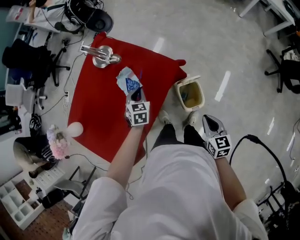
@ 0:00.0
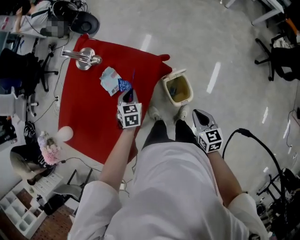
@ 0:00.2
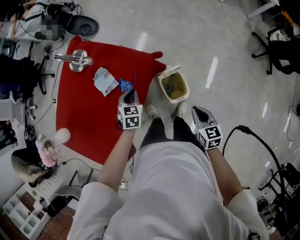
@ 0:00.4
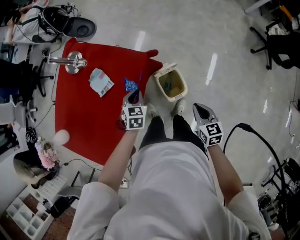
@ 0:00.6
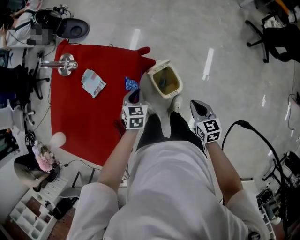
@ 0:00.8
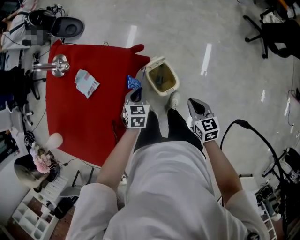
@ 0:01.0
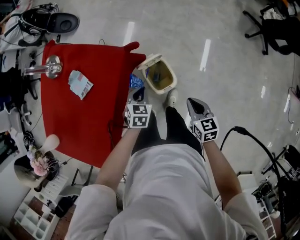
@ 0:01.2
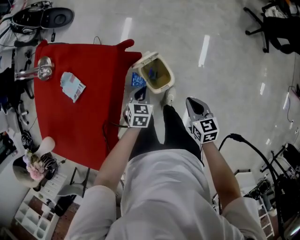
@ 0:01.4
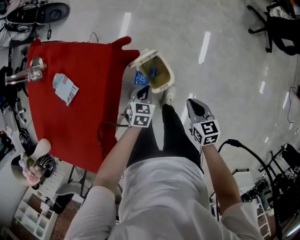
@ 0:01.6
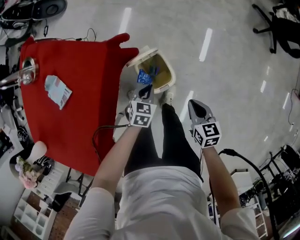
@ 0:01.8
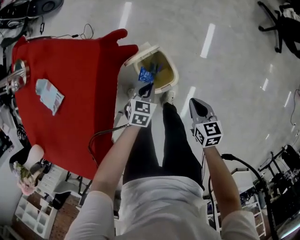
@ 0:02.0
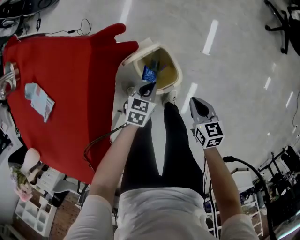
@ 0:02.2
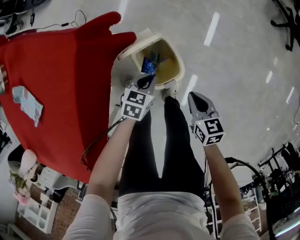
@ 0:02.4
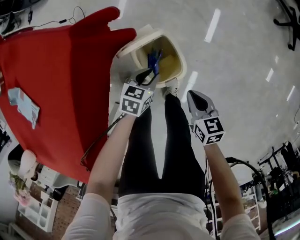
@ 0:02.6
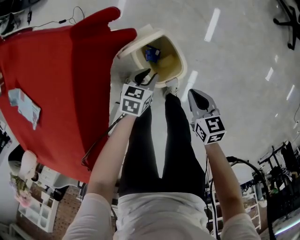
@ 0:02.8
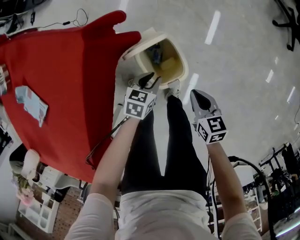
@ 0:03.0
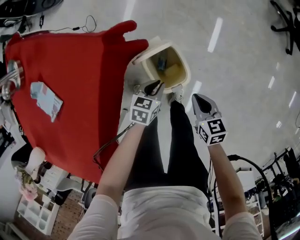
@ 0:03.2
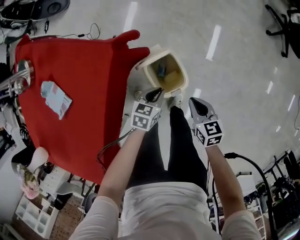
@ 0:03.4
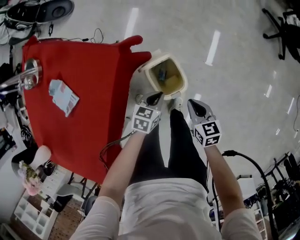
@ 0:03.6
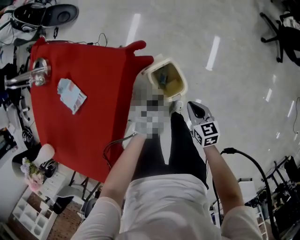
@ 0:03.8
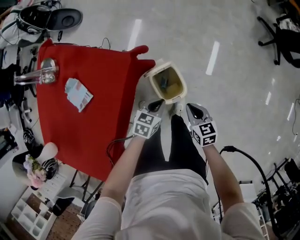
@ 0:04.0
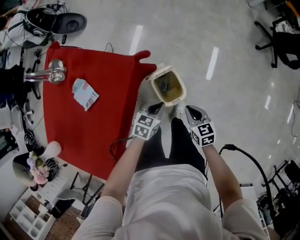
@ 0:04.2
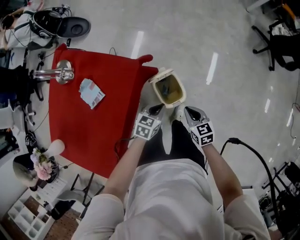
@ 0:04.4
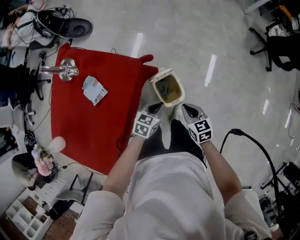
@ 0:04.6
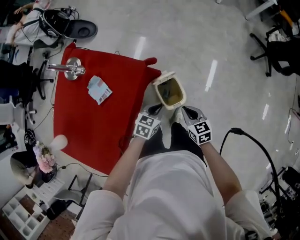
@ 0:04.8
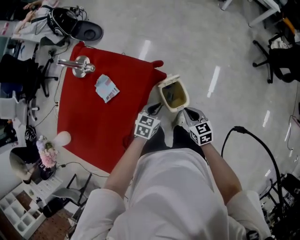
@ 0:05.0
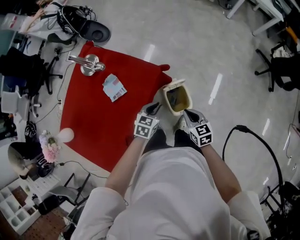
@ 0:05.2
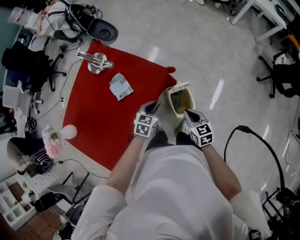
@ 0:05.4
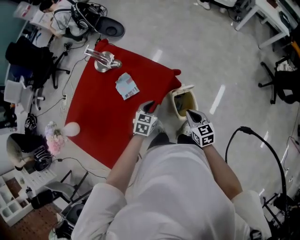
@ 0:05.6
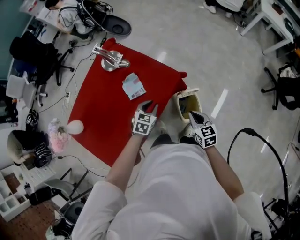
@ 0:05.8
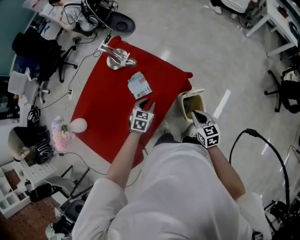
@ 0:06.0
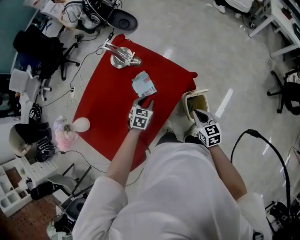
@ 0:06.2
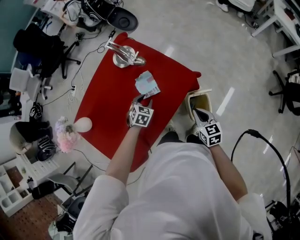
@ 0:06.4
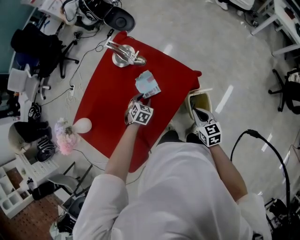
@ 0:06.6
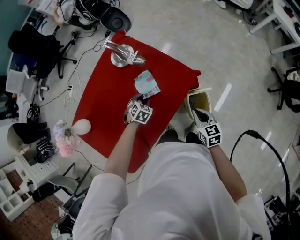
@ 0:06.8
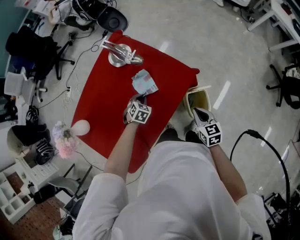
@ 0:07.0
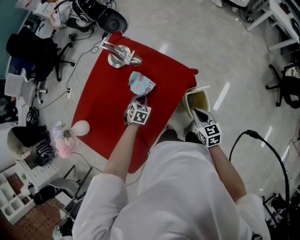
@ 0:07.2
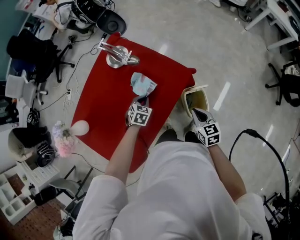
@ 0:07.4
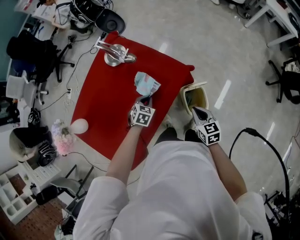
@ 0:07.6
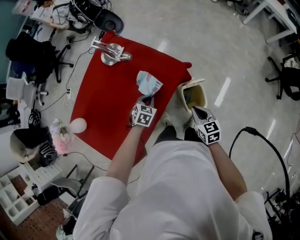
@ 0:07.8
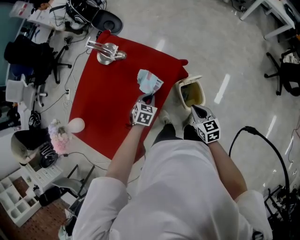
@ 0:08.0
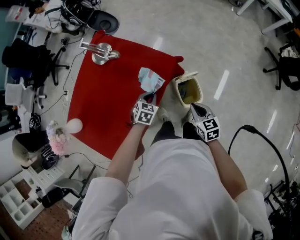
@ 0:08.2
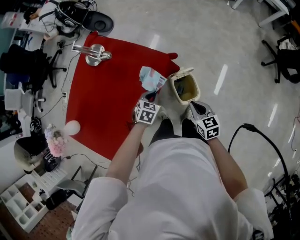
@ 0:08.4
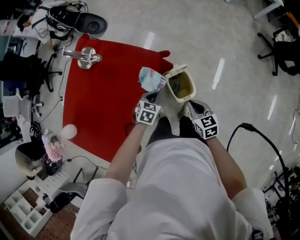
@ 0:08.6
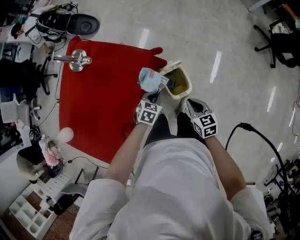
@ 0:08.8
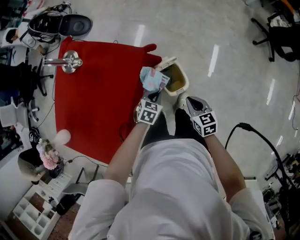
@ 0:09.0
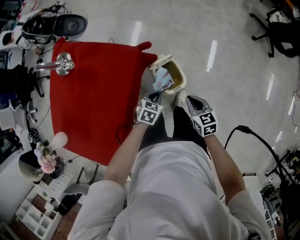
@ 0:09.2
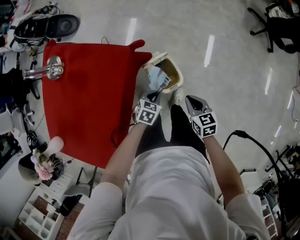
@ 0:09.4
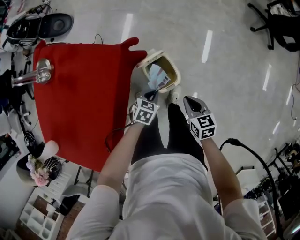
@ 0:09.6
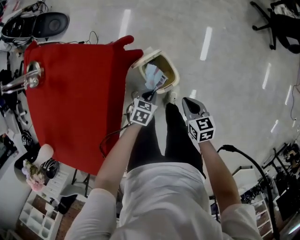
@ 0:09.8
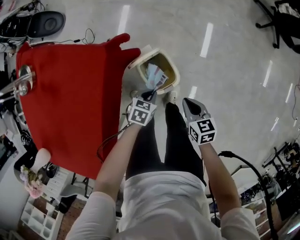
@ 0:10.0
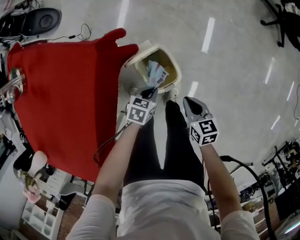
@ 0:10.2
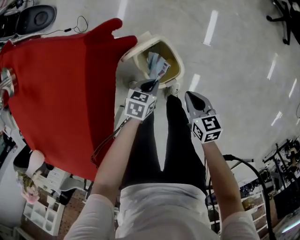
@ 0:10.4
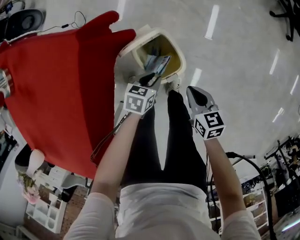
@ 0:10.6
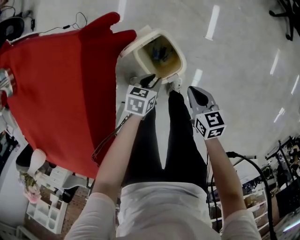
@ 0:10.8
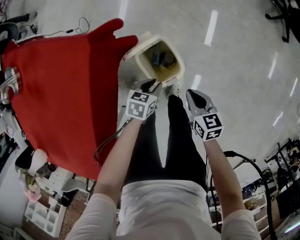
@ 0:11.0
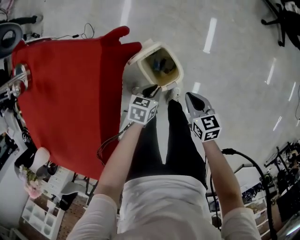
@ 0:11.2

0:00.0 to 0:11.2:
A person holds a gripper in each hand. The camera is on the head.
0:00.0 to 0:01.6: The left gripper heads to the right and downward, covering approximately 35 cm, and changes its angle by some 30 degrees, while the right gripper travels to the right and downward by approximately 20 cm.
0:01.6 to 0:03.2: The grippers both shift downward by roughly 15 cm.
0:03.2 to 0:04.8: The grippers both shift upward by roughly 25 cm.
0:04.8 to 0:06.4: The left gripper travels to the left by approximately 30 cm, rotates about 30 degrees, and opens up; the right gripper travels to the left by some 15 cm.
0:06.4 to 0:08.0: The left gripper goes approximately 10 cm to the right, and closes up. The right gripper heads backward and to the right, covering roughly 10 cm.
0:08.0 to 0:09.6: The right gripper changes place by about 20 cm, and rotates approximately 20 degrees. The left gripper ends up approximately 30 cm from where it was, and swivels approximately 20 degrees.
0:09.6 to 0:11.2: The two grippers go about 10 cm downward.

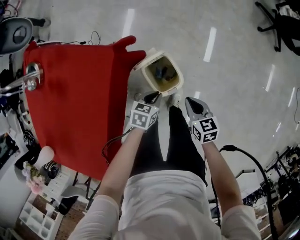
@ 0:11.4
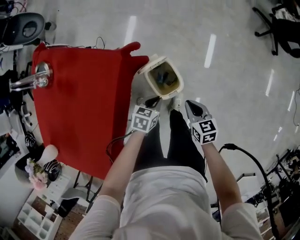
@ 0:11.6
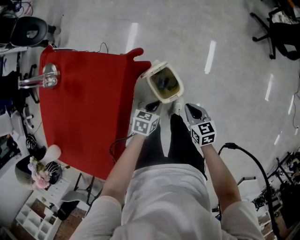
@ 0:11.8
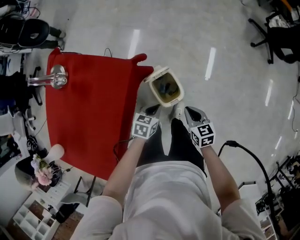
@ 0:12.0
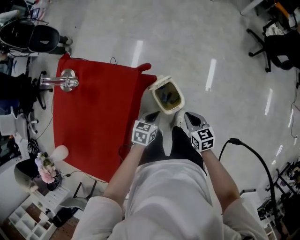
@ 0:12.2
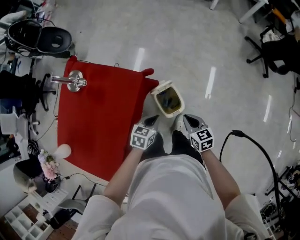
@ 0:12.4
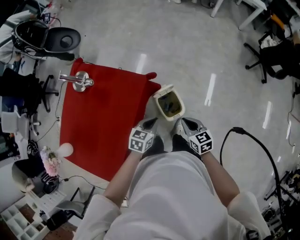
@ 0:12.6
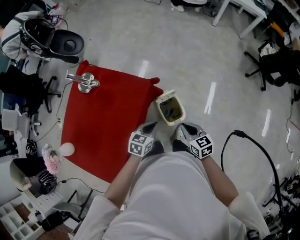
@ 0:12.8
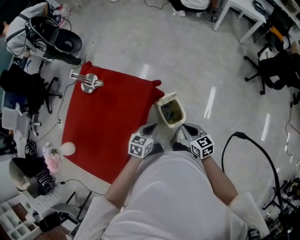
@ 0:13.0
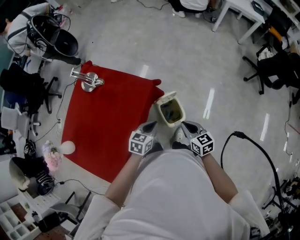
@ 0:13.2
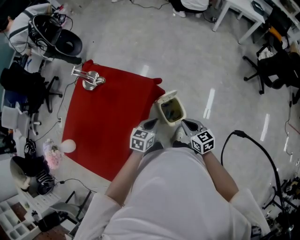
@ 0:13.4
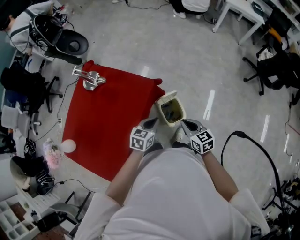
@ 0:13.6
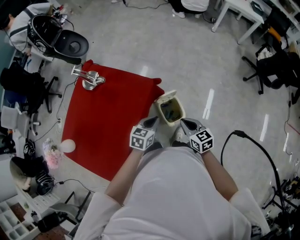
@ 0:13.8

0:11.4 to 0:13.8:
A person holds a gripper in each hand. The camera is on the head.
0:11.4 to 0:12.6: Both grippers move upward, approximately 25 cm.
0:12.6 to 0:13.8: Both grippers travel together upward, some 5 cm.

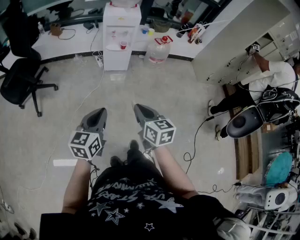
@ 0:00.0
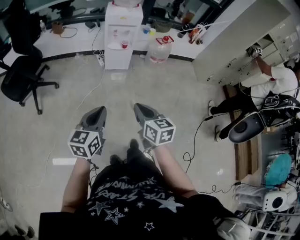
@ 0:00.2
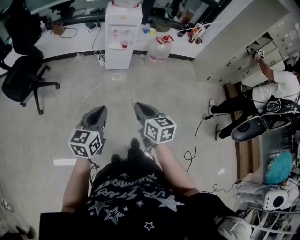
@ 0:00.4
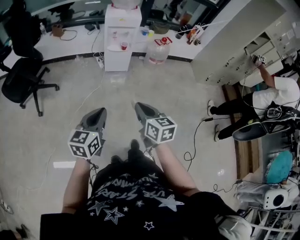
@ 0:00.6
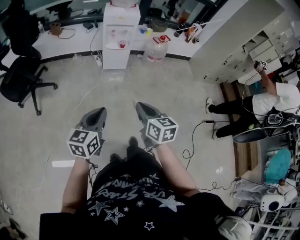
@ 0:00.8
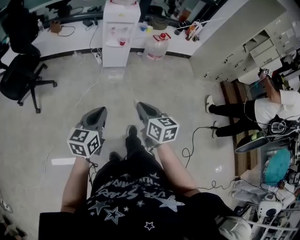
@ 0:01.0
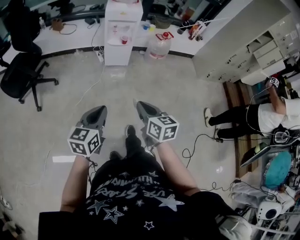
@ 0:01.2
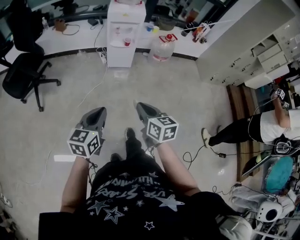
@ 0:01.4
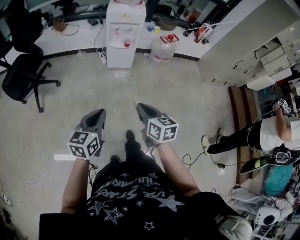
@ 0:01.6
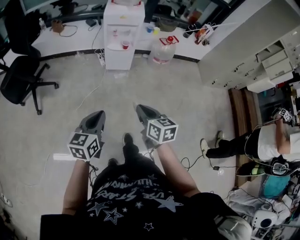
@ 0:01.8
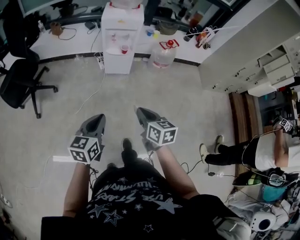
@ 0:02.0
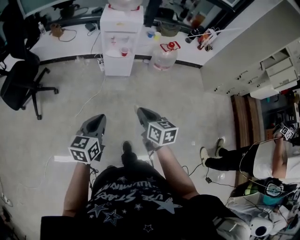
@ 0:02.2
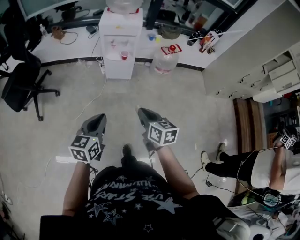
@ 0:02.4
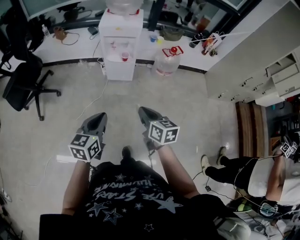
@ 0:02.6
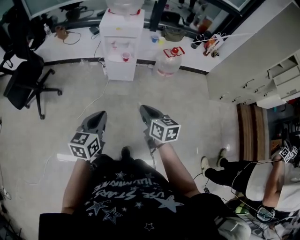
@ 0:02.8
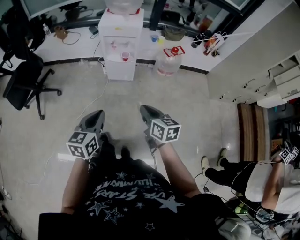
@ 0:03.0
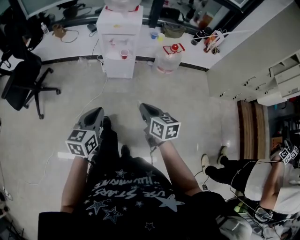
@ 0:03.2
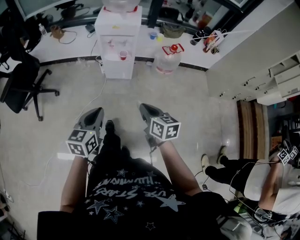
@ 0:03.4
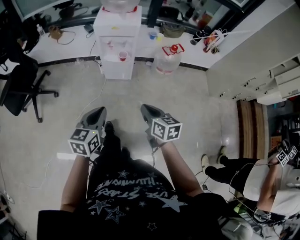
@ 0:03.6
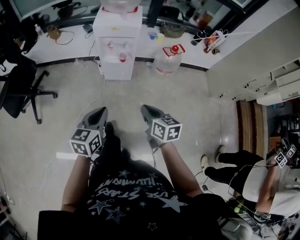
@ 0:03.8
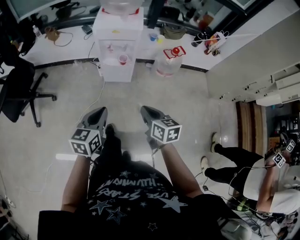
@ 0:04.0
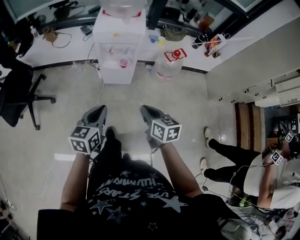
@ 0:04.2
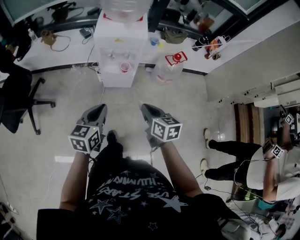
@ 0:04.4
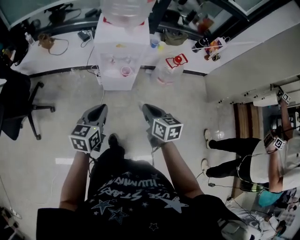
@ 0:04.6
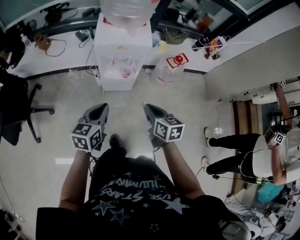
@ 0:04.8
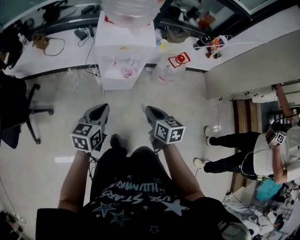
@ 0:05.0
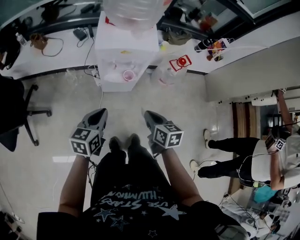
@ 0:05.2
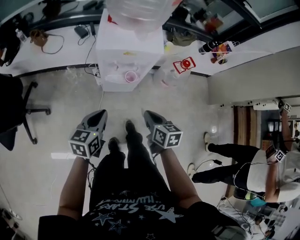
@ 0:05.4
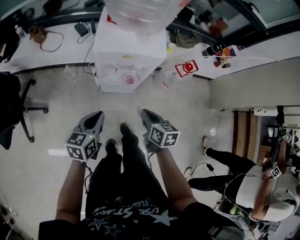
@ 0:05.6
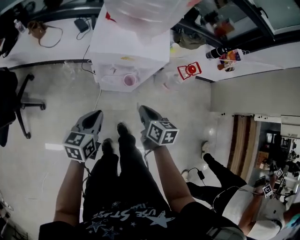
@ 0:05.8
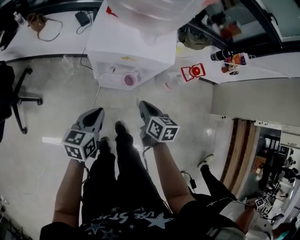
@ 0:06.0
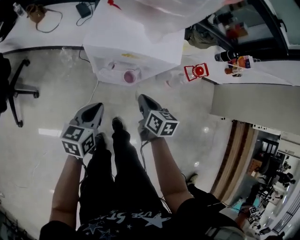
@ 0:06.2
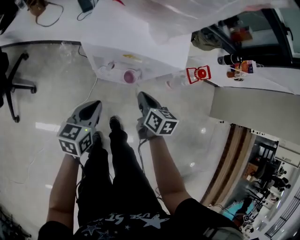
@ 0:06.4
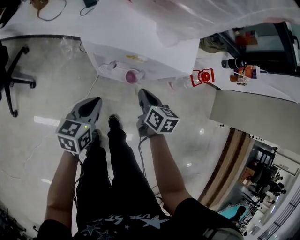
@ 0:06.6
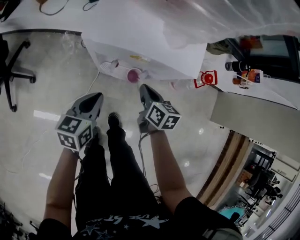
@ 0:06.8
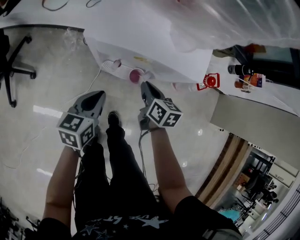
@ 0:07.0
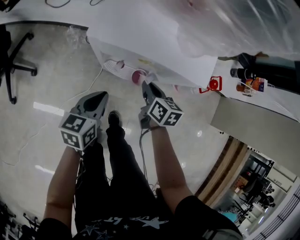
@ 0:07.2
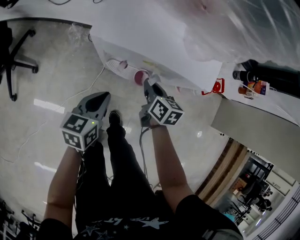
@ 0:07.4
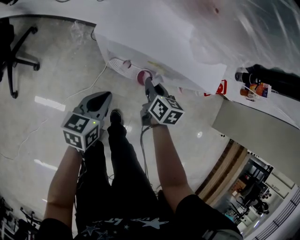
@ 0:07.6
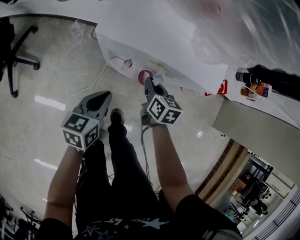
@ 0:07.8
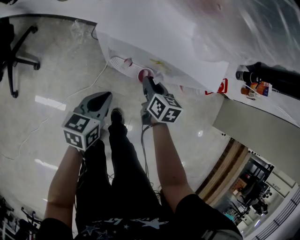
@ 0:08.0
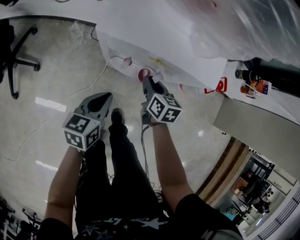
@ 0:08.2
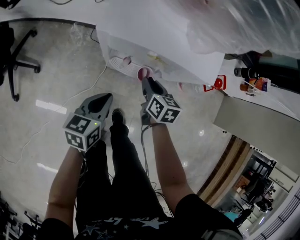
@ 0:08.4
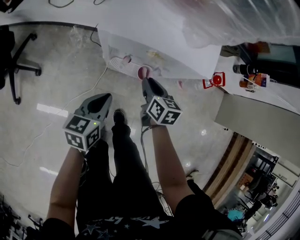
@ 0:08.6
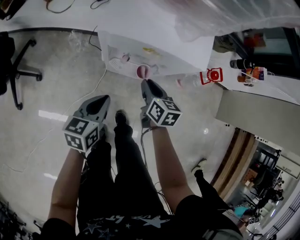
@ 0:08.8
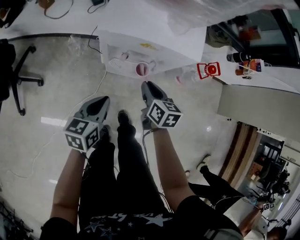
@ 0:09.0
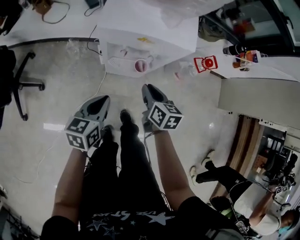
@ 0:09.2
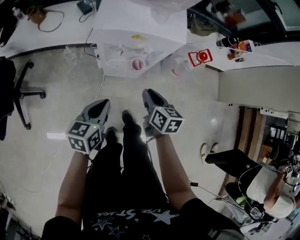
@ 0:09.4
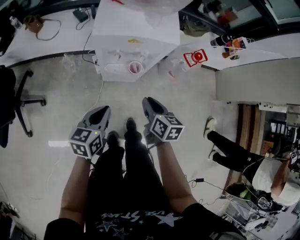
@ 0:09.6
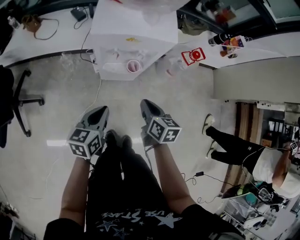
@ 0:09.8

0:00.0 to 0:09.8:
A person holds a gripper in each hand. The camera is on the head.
0:00.0 to 0:01.4: The grippers stay close to where they were, moving slightly.
0:01.4 to 0:02.8: The two grippers go about 25 cm forward and to the right.
0:02.8 to 0:04.2: Both grippers travel together forward, roughly 15 cm.
0:04.2 to 0:05.6: The grippers both shift forward and downward by approximately 25 cm.
0:05.6 to 0:07.0: The left gripper shifts approximately 20 cm downward and forward. Meanwhile the right gripper shifts some 25 cm forward and downward.
0:07.0 to 0:08.4: The grippers make only small movements.
0:08.4 to 0:09.8: The right gripper moves backward and upward, roughly 25 cm, while the left gripper shifts roughly 15 cm backward and upward.
